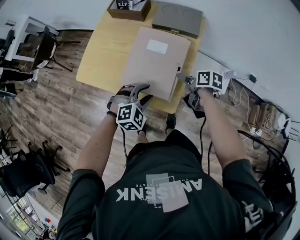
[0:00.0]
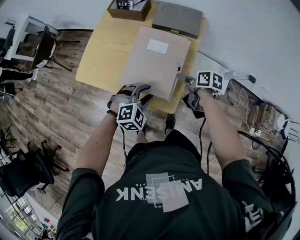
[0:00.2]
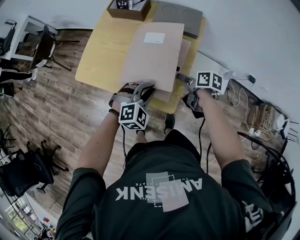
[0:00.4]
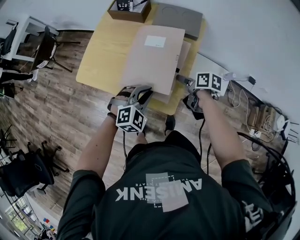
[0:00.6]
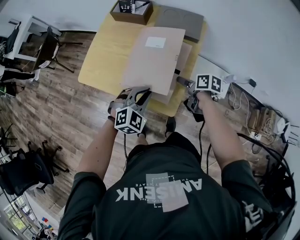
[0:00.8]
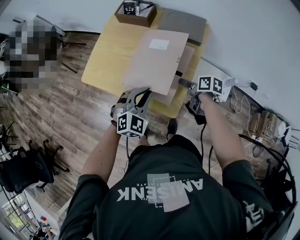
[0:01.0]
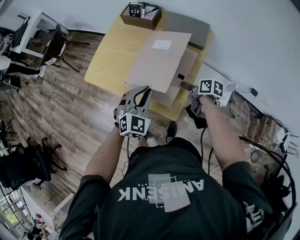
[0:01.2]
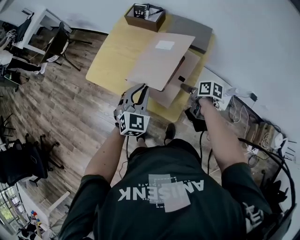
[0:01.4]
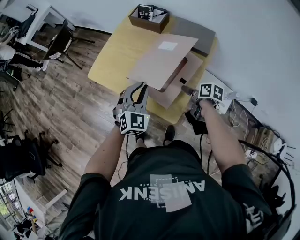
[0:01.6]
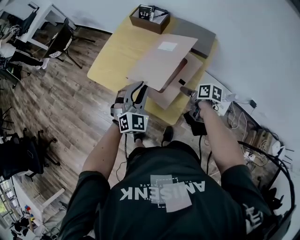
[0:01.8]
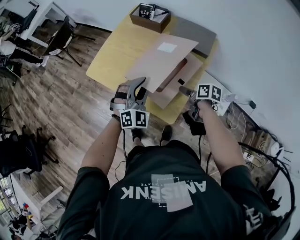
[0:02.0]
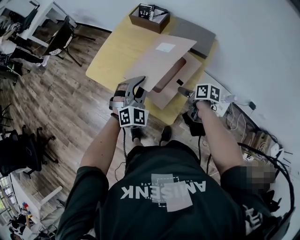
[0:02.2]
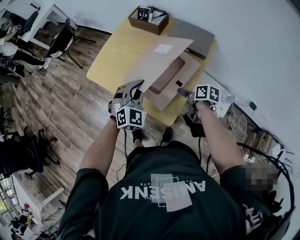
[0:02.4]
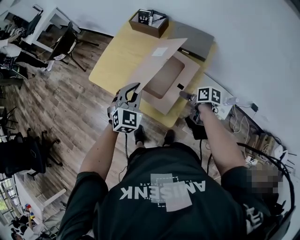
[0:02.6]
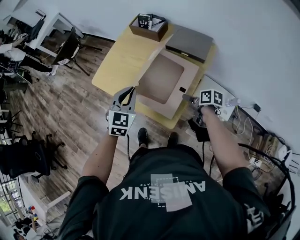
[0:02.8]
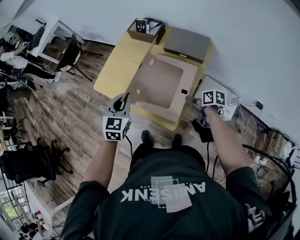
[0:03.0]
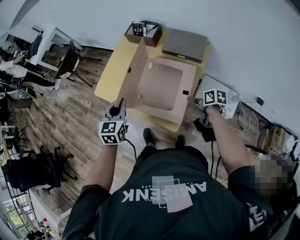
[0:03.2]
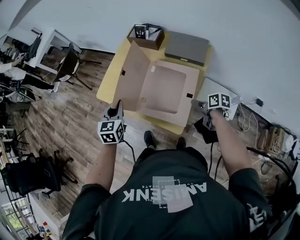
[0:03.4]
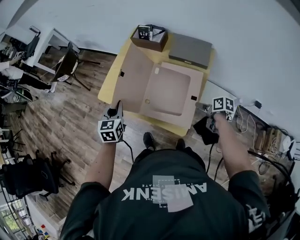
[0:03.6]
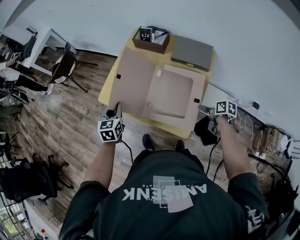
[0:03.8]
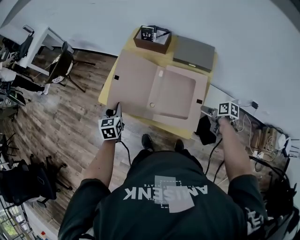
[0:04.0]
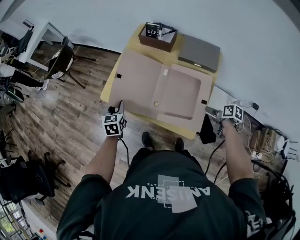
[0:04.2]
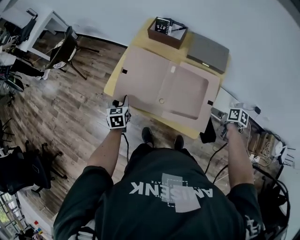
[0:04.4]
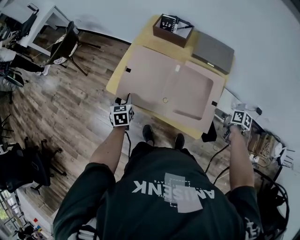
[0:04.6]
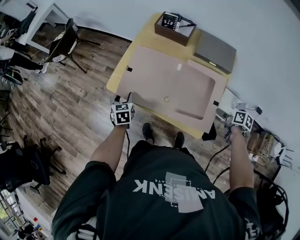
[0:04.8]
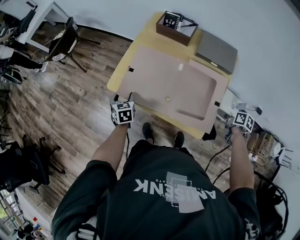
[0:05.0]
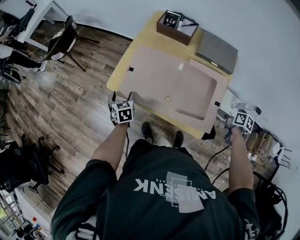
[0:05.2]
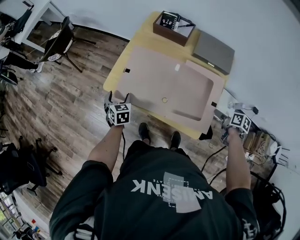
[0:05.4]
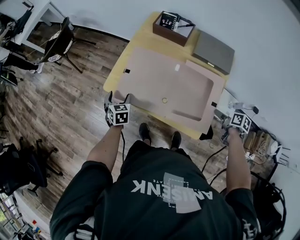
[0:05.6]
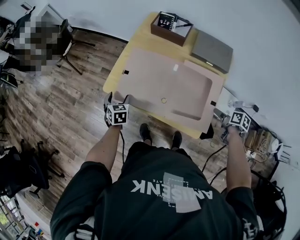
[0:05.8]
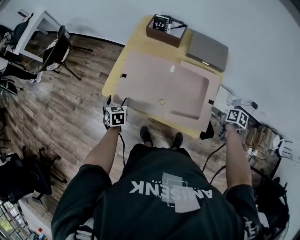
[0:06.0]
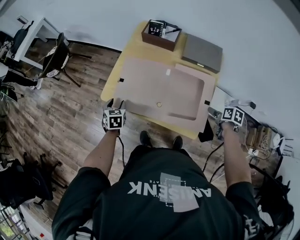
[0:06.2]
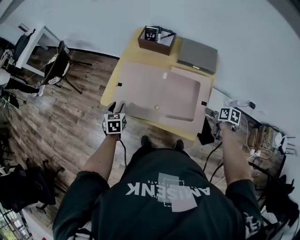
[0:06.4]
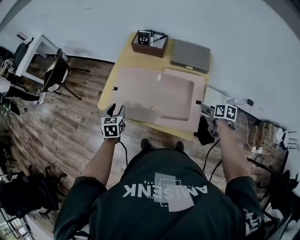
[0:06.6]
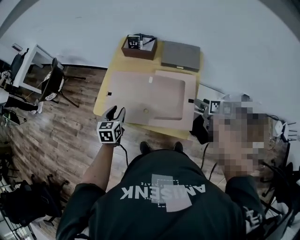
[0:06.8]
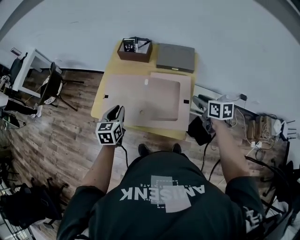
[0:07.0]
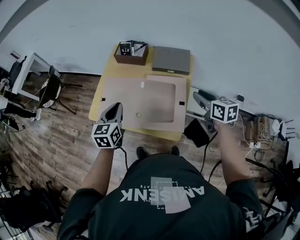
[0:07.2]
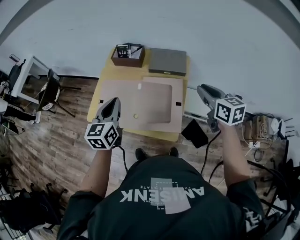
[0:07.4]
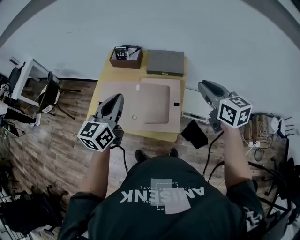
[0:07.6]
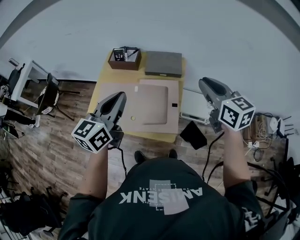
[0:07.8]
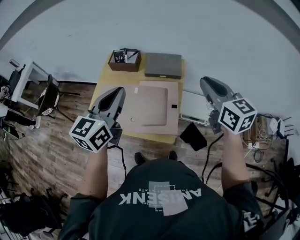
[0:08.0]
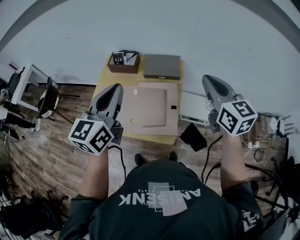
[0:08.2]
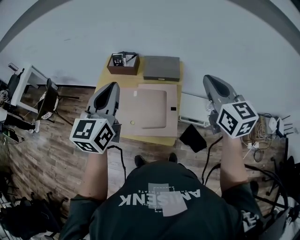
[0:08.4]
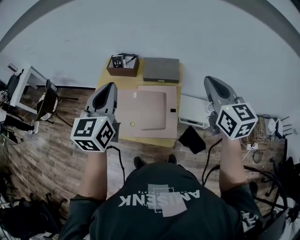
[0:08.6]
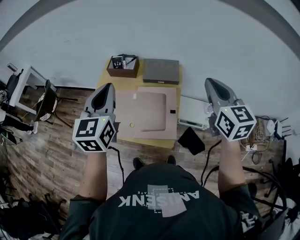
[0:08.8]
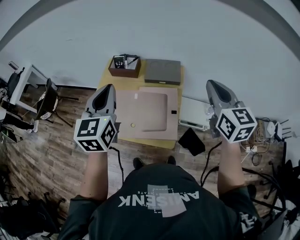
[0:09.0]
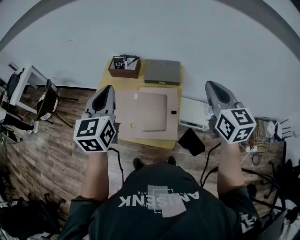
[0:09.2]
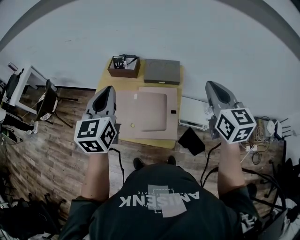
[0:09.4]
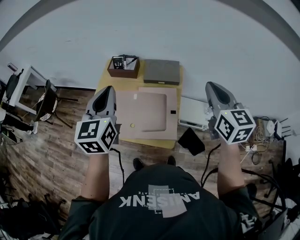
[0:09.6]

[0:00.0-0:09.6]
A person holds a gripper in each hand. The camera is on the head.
0.0 to 1.6 s: The left gripper heads upward and forward, covering approximately 10 cm, swivels about 40 degrees, and closes up.
1.6 to 3.2 s: The left gripper moves to the left, roughly 10 cm, and turns by roughly 30 degrees.
3.2 to 4.8 s: The right gripper turns by about 20 degrees, while the left gripper heads downward, to the left and forward, covering approximately 25 cm, turns by some 20 degrees, and opens.
4.8 to 6.4 s: The left gripper opens, then closes once more.
6.4 to 8.0 s: The left gripper is displaced upward and to the right by some 40 cm, tips its fingers upward by roughly 40 degrees, and closes its fingers, while the right gripper goes about 40 cm upward, angles its fingers upward, by roughly 40 degrees, and closes.
8.0 to 9.6 s: The left gripper turns by about 20 degrees.

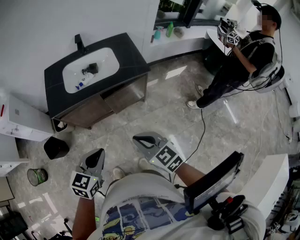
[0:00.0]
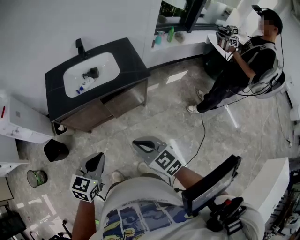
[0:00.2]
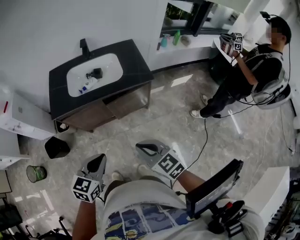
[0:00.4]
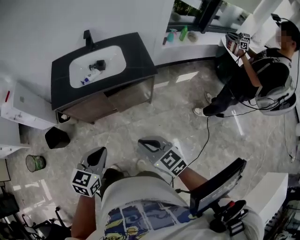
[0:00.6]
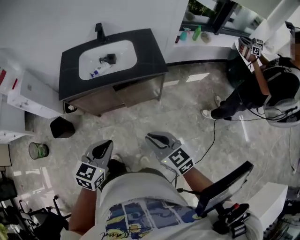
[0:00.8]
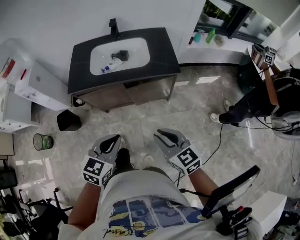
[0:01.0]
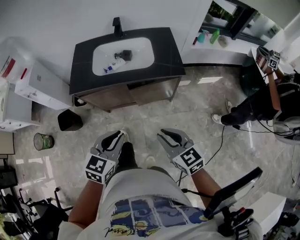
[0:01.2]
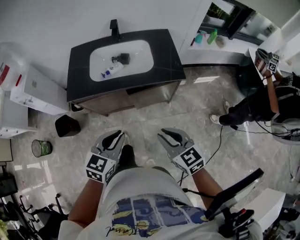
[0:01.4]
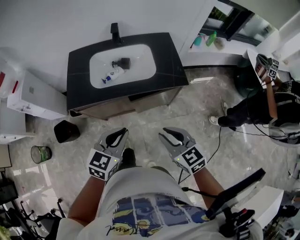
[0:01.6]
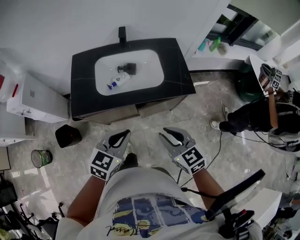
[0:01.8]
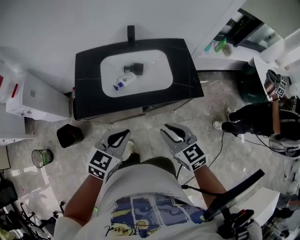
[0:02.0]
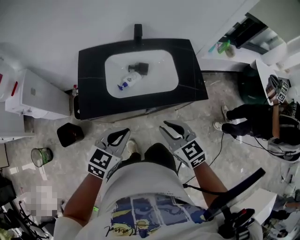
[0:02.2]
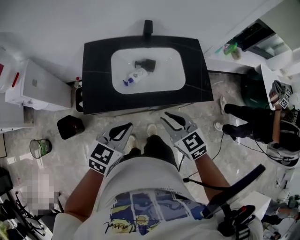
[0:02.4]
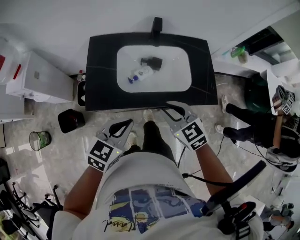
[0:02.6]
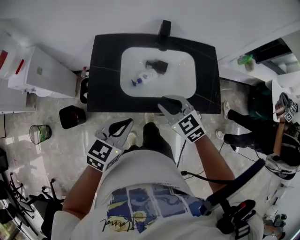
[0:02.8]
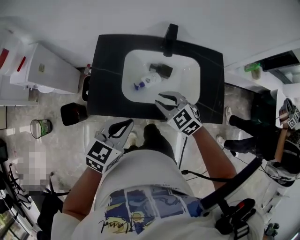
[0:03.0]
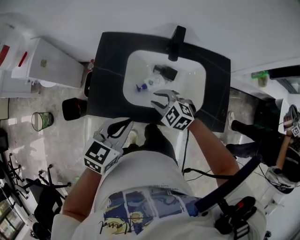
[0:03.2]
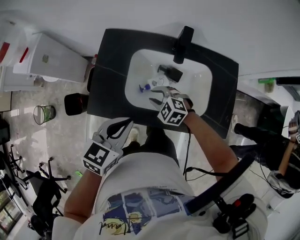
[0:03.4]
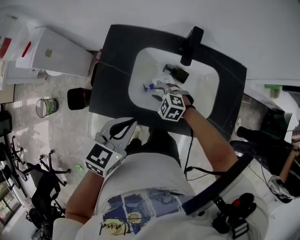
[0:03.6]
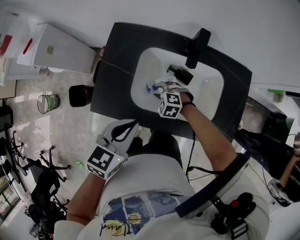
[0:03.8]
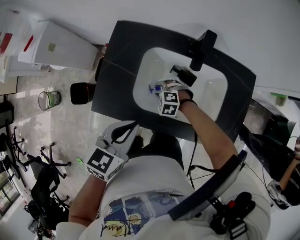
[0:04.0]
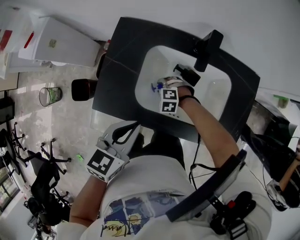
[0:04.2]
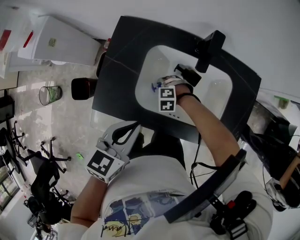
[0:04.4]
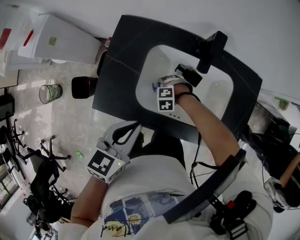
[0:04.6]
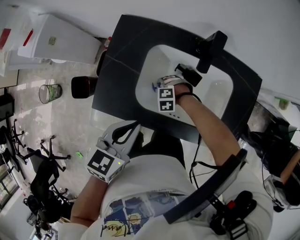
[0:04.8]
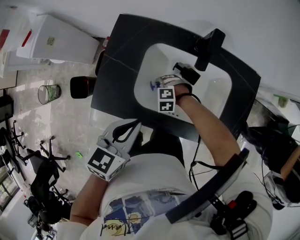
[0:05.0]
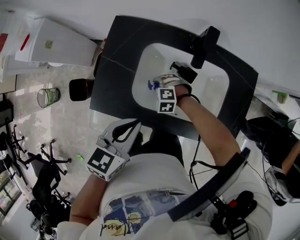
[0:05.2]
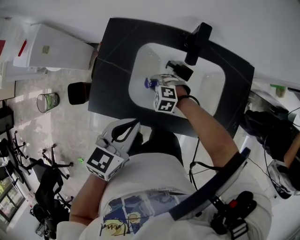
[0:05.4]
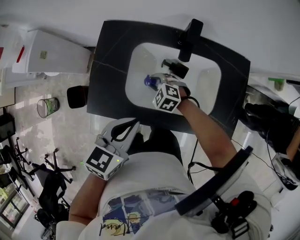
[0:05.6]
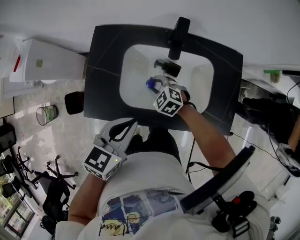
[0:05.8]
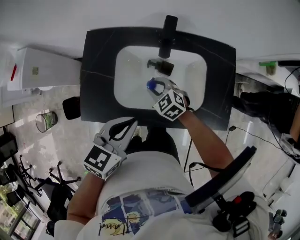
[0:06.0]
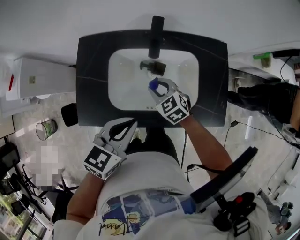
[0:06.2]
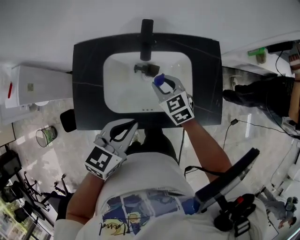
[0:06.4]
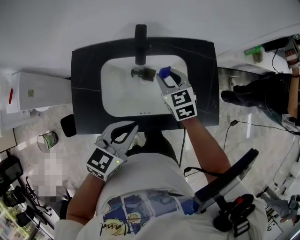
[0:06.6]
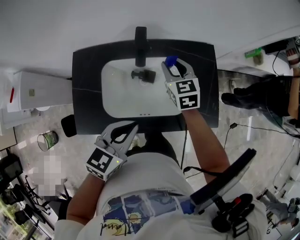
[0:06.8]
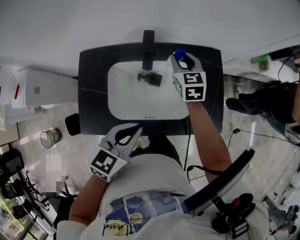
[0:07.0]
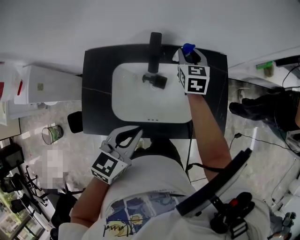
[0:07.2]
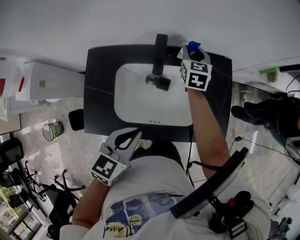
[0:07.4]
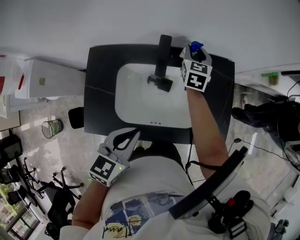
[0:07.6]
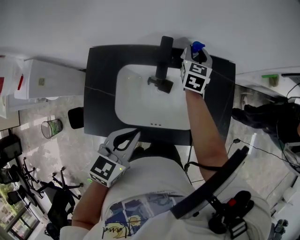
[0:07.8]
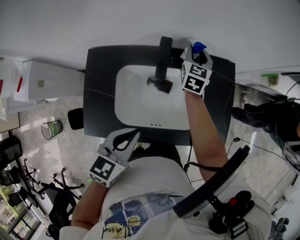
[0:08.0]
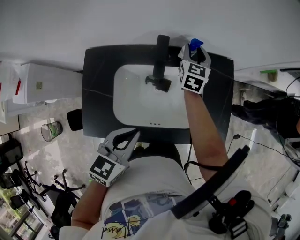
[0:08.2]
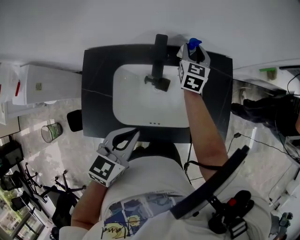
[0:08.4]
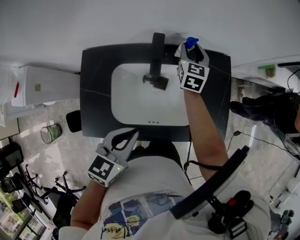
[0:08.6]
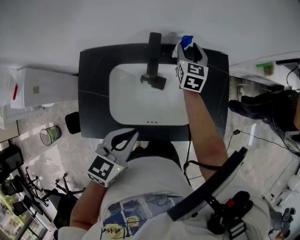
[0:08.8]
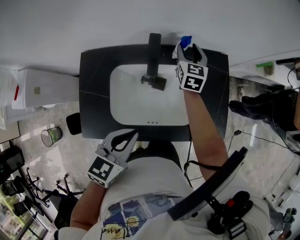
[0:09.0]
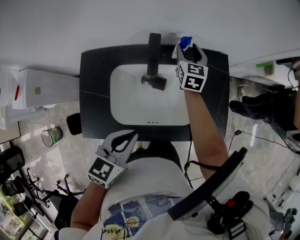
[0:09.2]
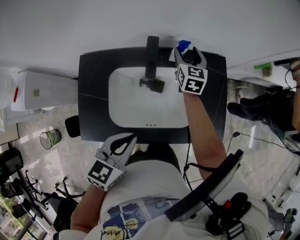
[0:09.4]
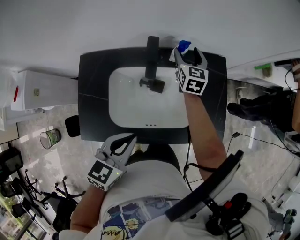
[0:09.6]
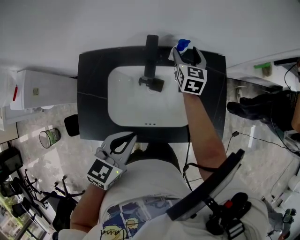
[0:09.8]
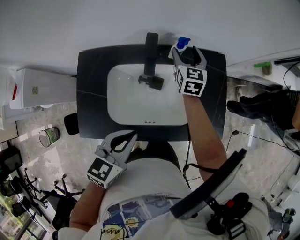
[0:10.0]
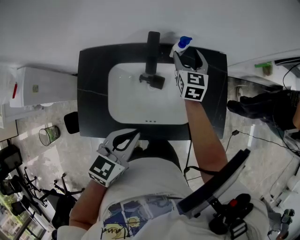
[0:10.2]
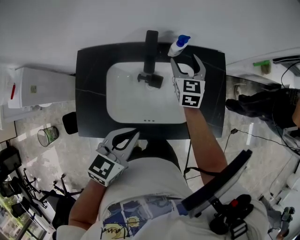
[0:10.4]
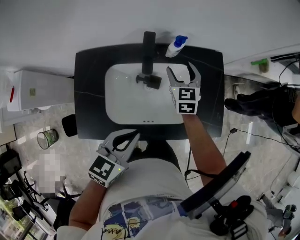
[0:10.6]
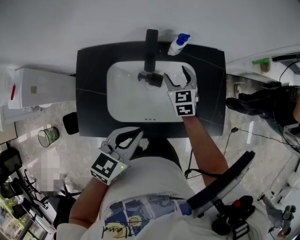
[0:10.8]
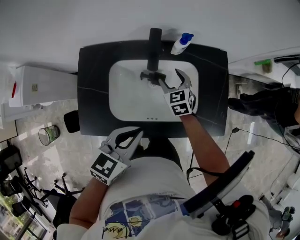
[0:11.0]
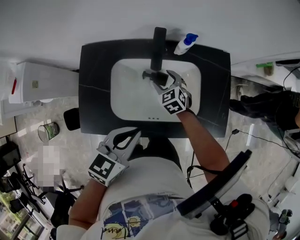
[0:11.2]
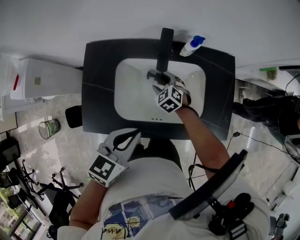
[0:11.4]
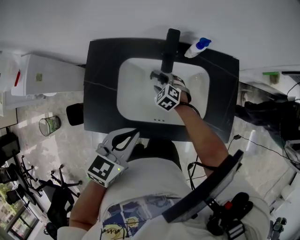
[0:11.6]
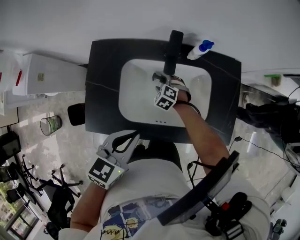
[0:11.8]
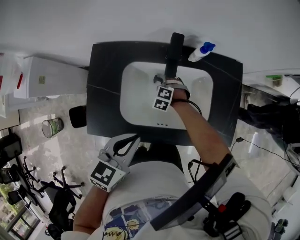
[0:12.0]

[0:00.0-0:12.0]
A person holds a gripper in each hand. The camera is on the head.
0.0 to 1.6 s: The two grippers go some 10 cm forward.
1.6 to 3.0 s: The left gripper heads forward and to the left, covering approximately 25 cm. Meanwhile the right gripper moves forward and to the left, approximately 35 cm, and rotates roughly 30 degrees.
3.0 to 4.4 s: The left gripper is displaced forward by about 5 cm. The right gripper goes roughly 25 cm downward, and tilts its fingers approximately 30 degrees downward.
4.4 to 6.0 s: The left gripper moves approximately 5 cm. The right gripper travels upward by approximately 15 cm, and twists roughly 40 degrees clockwise, seen from behind.
6.0 to 7.6 s: The right gripper ends up roughly 30 cm from where it was, and changes its angle by about 60 degrees.
7.6 to 9.0 s: The grippers stay close to where they were, moving slightly.
9.0 to 10.4 s: The right gripper is displaced backward by about 5 cm.
10.4 to 12.0 s: The left gripper ends up approximately 5 cm from where it was; the right gripper heads downward, to the left and backward, covering approximately 30 cm, and tips its fingers downward by about 40 degrees.

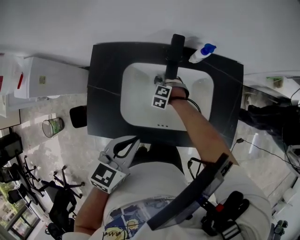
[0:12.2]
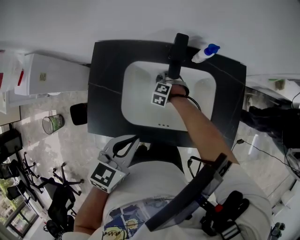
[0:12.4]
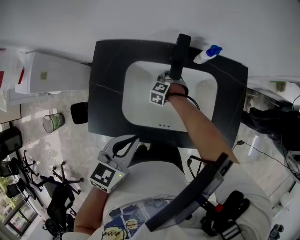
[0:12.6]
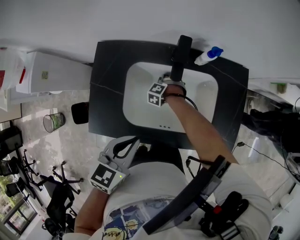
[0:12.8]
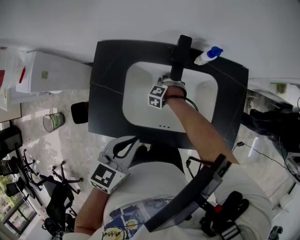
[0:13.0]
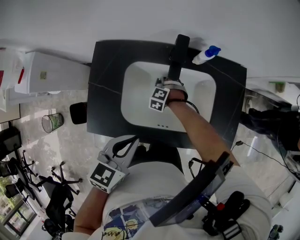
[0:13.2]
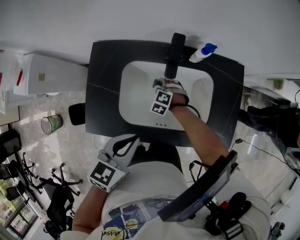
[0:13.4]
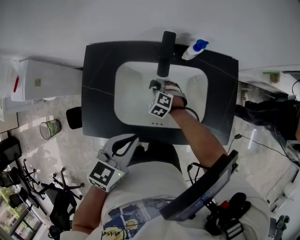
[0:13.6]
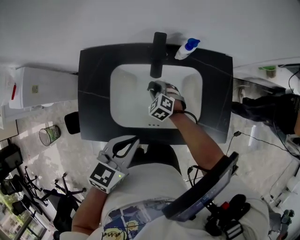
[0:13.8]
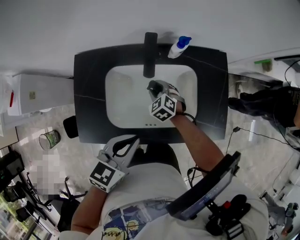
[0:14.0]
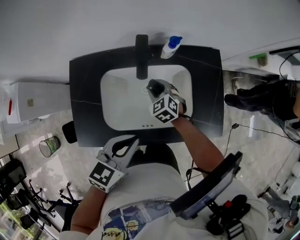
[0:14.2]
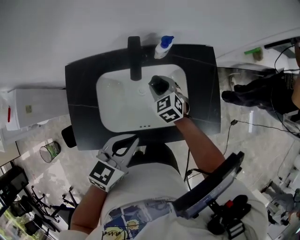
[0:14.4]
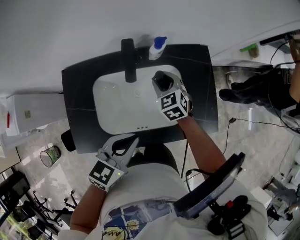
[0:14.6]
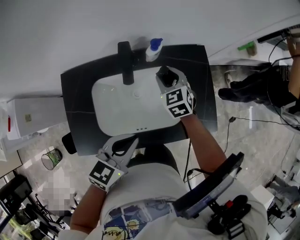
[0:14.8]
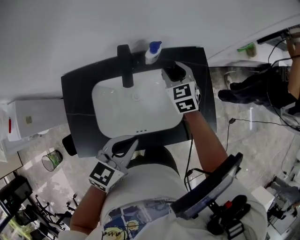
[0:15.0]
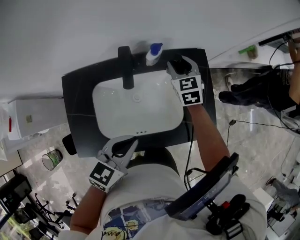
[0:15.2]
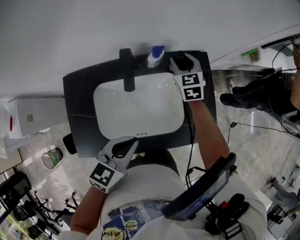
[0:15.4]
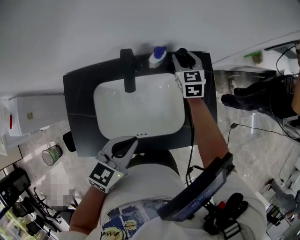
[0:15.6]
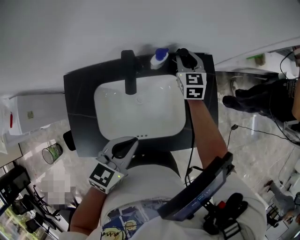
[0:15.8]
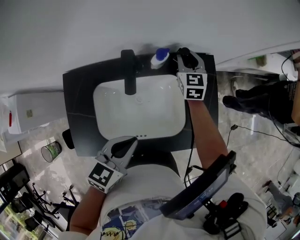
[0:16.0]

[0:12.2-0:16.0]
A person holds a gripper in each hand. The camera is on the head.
12.2 to 13.4 s: The grippers stay close to where they were, moving slightly.
13.4 to 14.8 s: The right gripper travels upward, to the right and forward by approximately 30 cm, and rolls clockwise, seen from behind, by approximately 50 degrees; the left gripper goes roughly 5 cm to the right.
14.8 to 16.0 s: The right gripper shifts roughly 15 cm forward, and swivels some 20 degrees.
